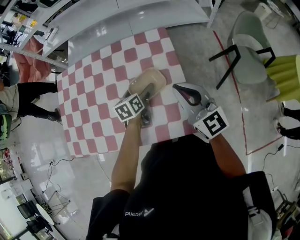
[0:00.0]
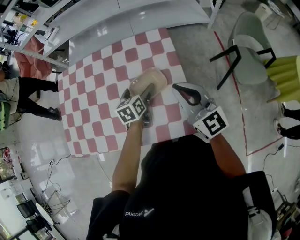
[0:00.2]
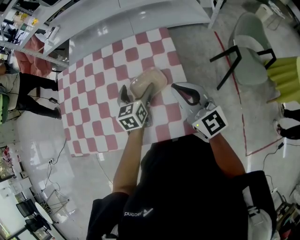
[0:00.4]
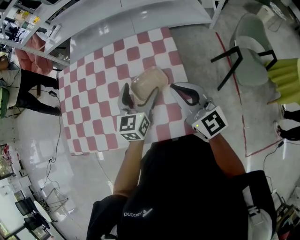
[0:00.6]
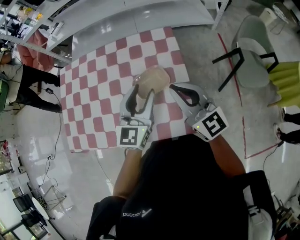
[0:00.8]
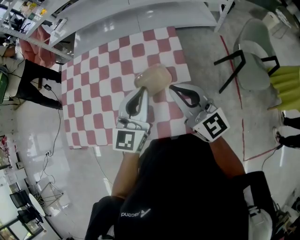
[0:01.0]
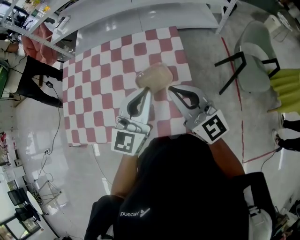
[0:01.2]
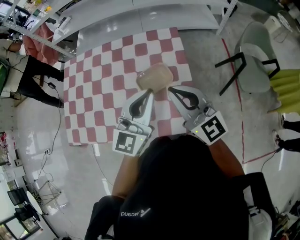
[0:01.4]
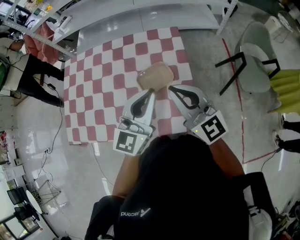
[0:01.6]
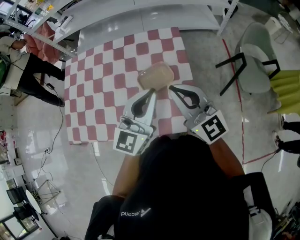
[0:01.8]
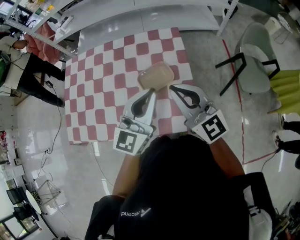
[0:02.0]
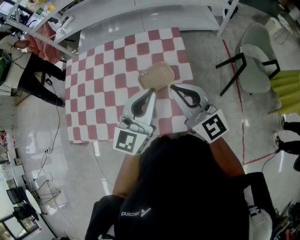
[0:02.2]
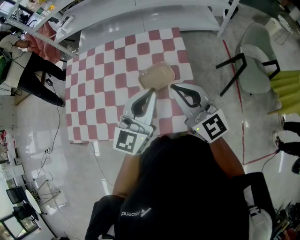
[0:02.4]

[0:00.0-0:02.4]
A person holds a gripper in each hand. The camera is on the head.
0:00.0 to 0:01.2: The left gripper moves upward and backward, some 25 cm, angles its fingers upward, by approximately 40 degrees, and closes its fingers. The right gripper changes place by about 5 cm.
0:01.2 to 0:02.4: There are only small adjustments of the grippers.

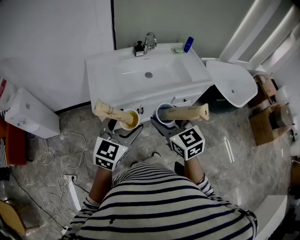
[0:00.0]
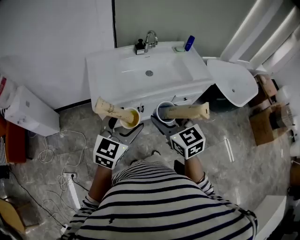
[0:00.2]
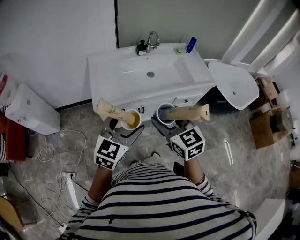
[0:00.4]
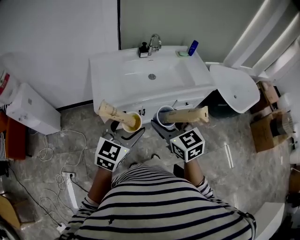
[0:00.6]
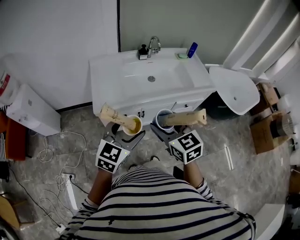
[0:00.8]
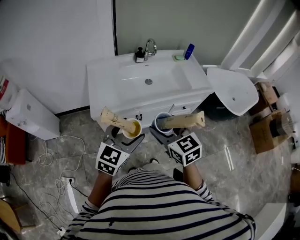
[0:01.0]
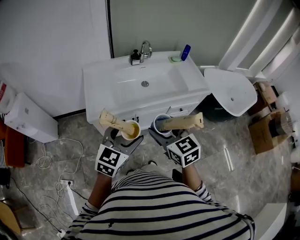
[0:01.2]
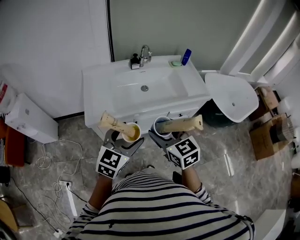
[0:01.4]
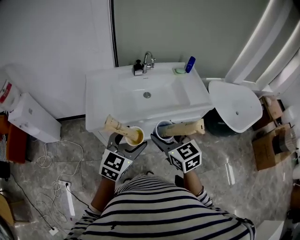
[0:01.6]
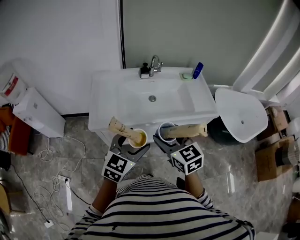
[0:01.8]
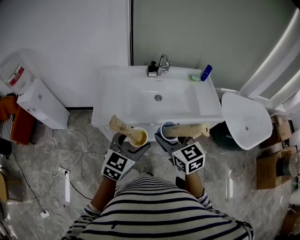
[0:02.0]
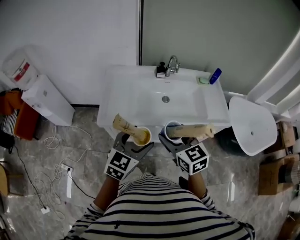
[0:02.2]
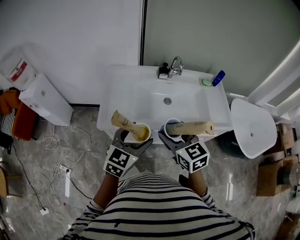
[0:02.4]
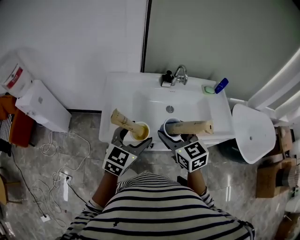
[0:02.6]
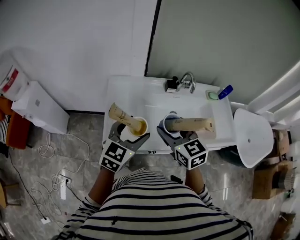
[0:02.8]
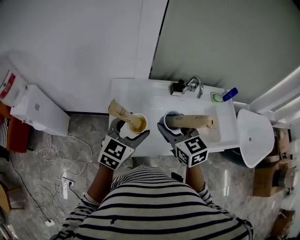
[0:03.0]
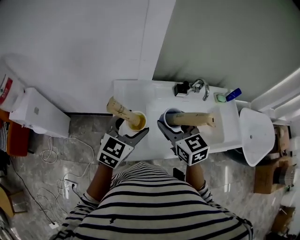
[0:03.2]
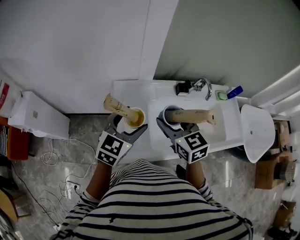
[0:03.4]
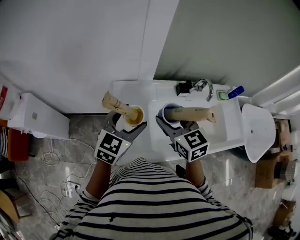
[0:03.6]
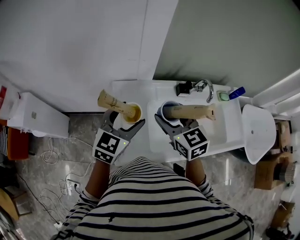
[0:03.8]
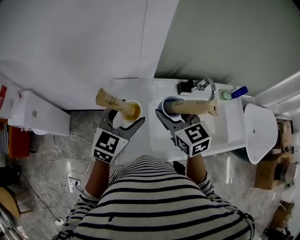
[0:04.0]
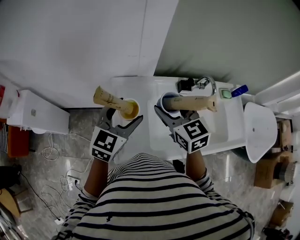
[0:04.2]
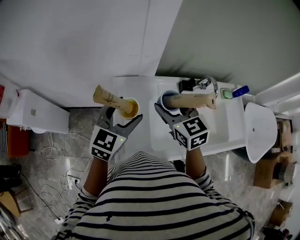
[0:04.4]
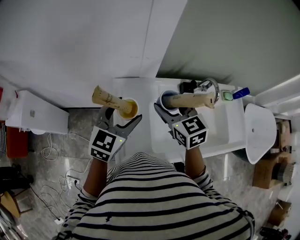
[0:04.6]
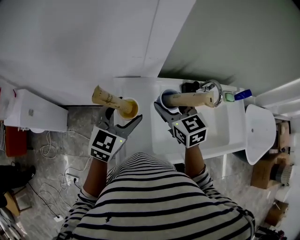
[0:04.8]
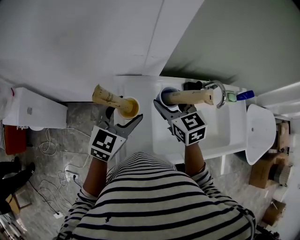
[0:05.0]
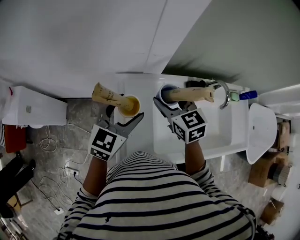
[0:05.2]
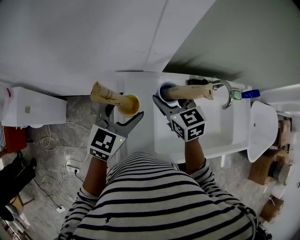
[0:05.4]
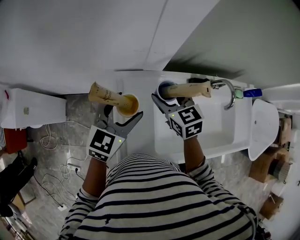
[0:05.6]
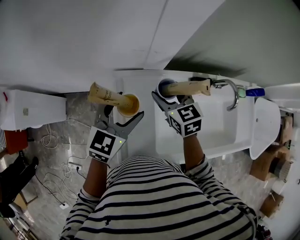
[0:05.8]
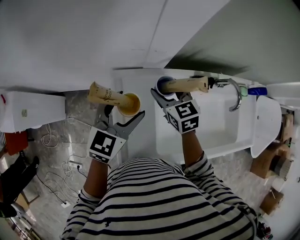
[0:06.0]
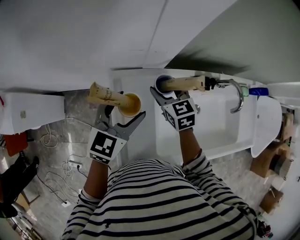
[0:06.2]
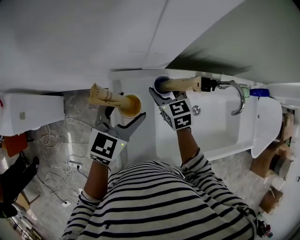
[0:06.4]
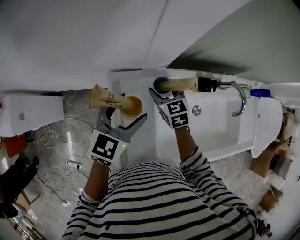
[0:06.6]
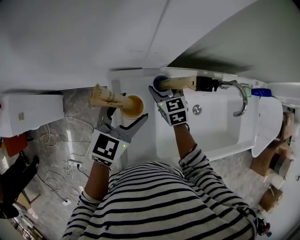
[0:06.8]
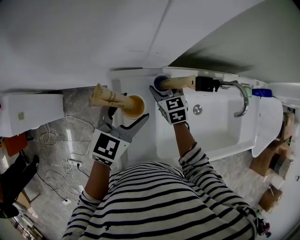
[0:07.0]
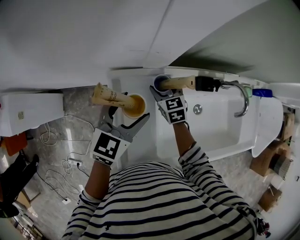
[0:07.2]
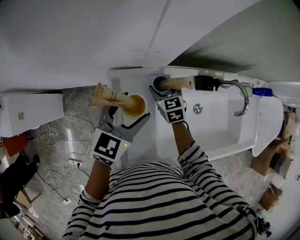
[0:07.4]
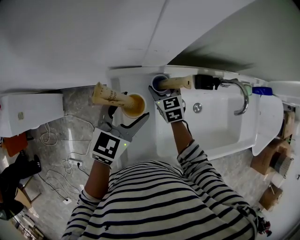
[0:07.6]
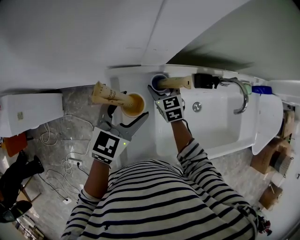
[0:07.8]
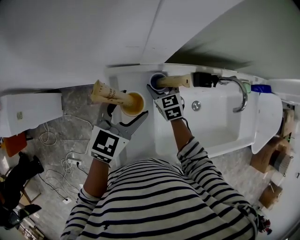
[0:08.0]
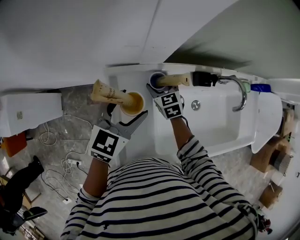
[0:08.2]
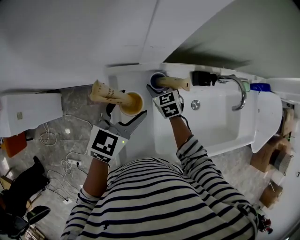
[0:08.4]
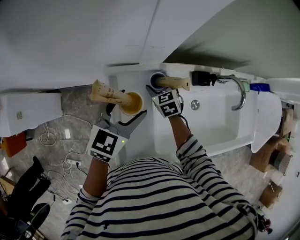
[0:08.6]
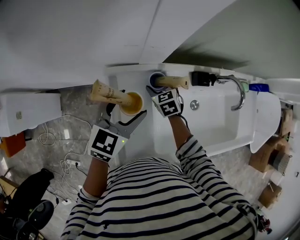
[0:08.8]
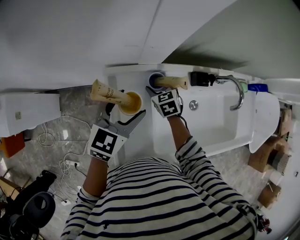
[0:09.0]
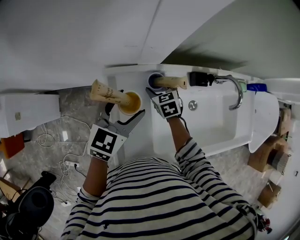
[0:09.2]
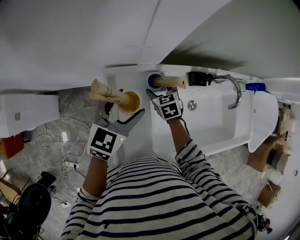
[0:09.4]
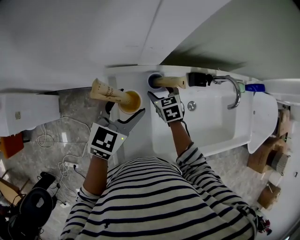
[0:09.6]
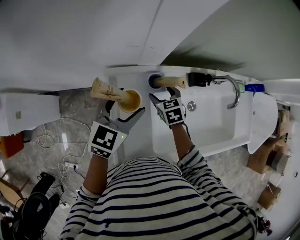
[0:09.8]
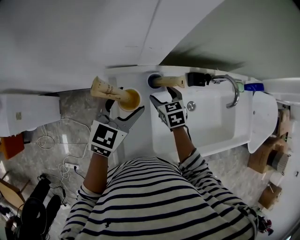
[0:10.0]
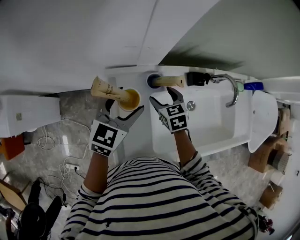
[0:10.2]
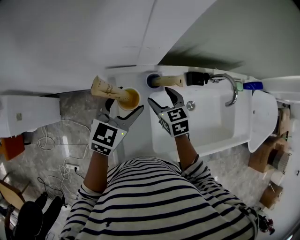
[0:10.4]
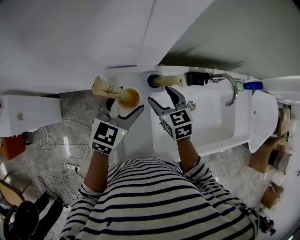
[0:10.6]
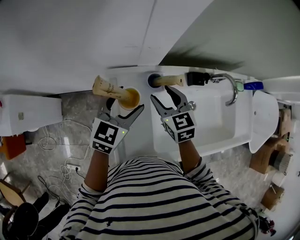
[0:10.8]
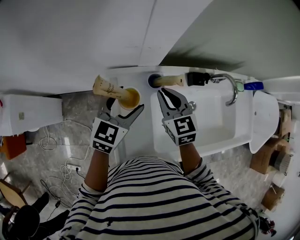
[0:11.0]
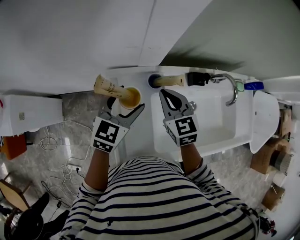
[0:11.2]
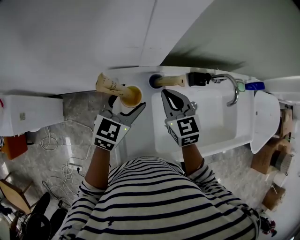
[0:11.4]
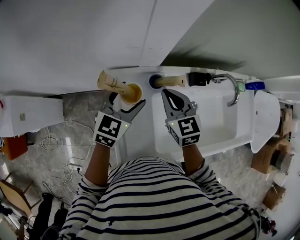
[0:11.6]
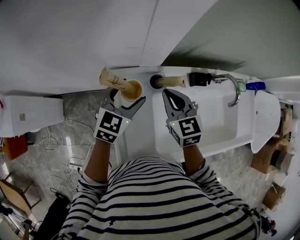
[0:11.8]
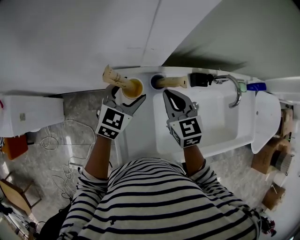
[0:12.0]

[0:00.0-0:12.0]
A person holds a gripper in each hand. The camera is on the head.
0:00.0 to 0:01.6: Both grippers travel together to the right and forward, about 10 cm.
0:01.6 to 0:03.0: The two grippers go some 35 cm forward and to the left.
0:03.0 to 0:04.4: Both grippers travel together forward and to the left, approximately 15 cm.
0:04.4 to 0:06.0: The left gripper travels forward and downward by roughly 15 cm, while the right gripper travels downward and forward by approximately 20 cm.
0:06.0 to 0:07.6: The right gripper travels downward by approximately 15 cm.
0:07.6 to 0:09.0: The grippers move only a little.
0:09.0 to 0:10.4: The right gripper goes approximately 10 cm upward and backward.
0:10.4 to 0:12.0: The right gripper is displaced upward by approximately 10 cm, and closes its fingers.

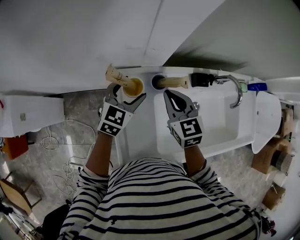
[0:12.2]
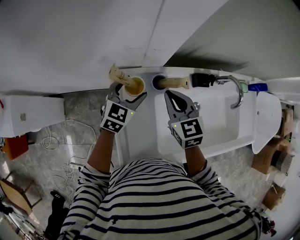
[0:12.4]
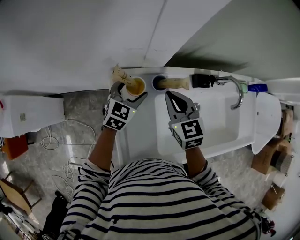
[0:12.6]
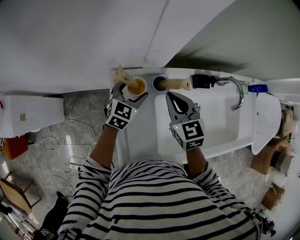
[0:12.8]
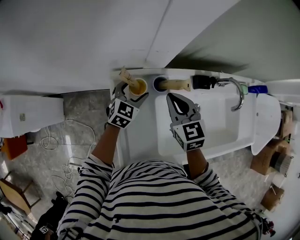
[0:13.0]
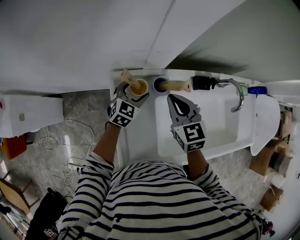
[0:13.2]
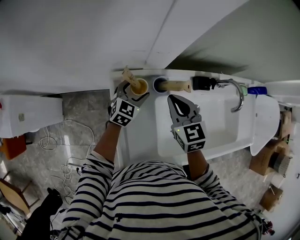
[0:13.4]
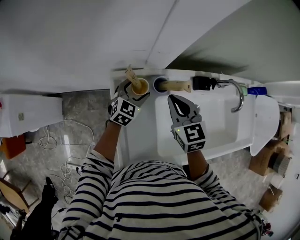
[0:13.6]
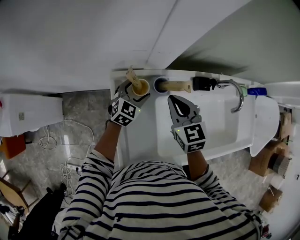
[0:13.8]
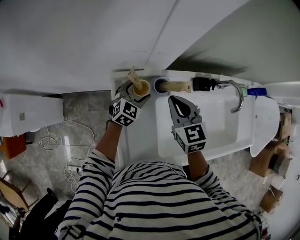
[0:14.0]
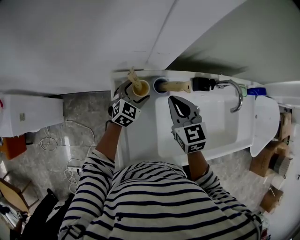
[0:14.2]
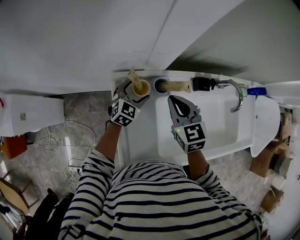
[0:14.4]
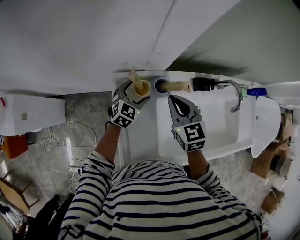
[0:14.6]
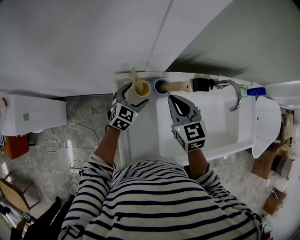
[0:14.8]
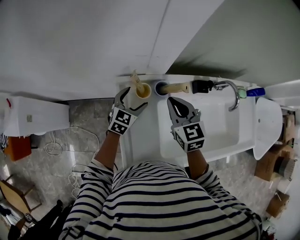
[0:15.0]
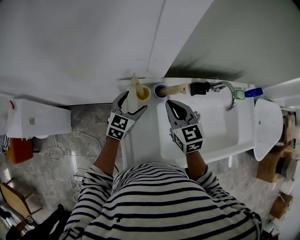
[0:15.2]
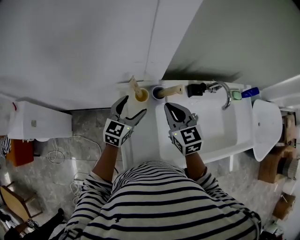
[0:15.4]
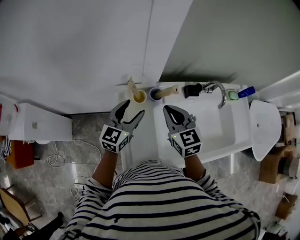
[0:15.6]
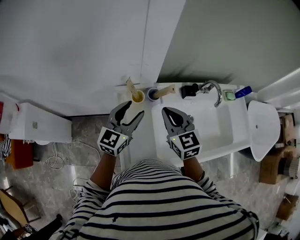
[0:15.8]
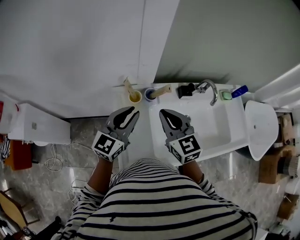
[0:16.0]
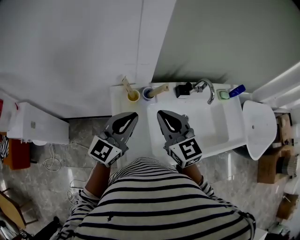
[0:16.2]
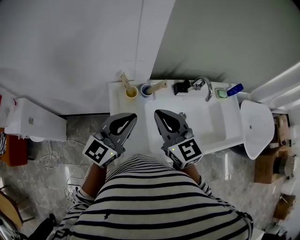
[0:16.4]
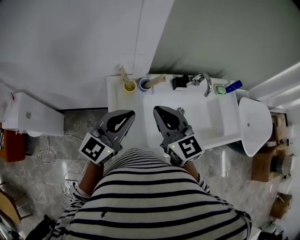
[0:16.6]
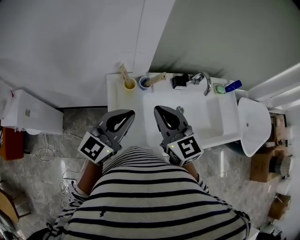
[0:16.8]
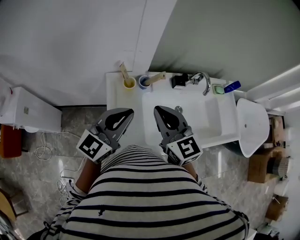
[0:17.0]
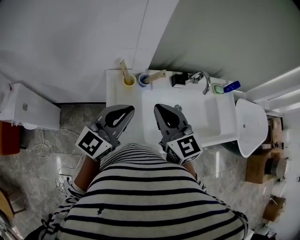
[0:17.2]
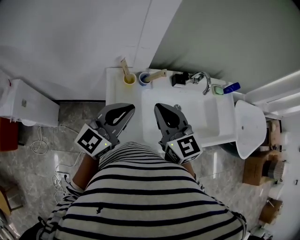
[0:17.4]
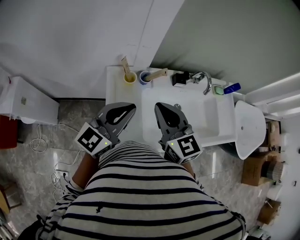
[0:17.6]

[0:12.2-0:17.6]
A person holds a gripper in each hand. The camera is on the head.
0:12.2 to 0:13.6: The left gripper heads downward, covering roughly 10 cm.
0:13.6 to 0:15.0: The left gripper changes place by approximately 5 cm.
0:15.0 to 0:16.2: The left gripper moves upward and backward, about 30 cm, changes its angle by some 30 degrees, and closes. Meanwhile the right gripper goes roughly 15 cm upward and backward.
0:16.2 to 0:17.6: The left gripper heads backward, covering roughly 5 cm.

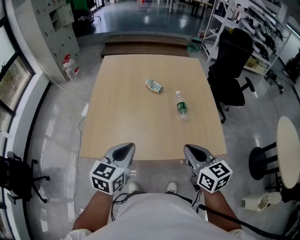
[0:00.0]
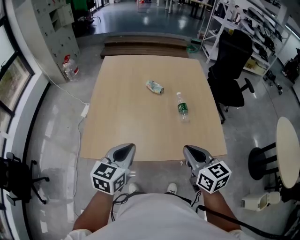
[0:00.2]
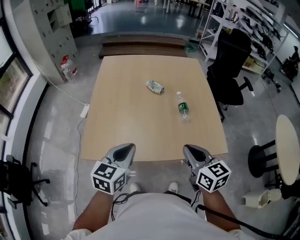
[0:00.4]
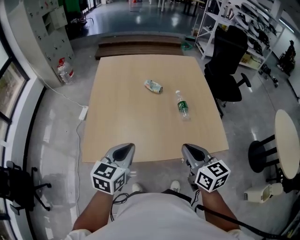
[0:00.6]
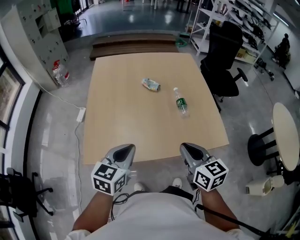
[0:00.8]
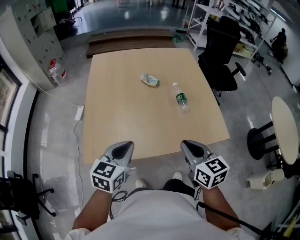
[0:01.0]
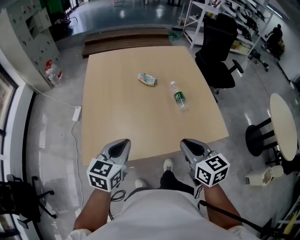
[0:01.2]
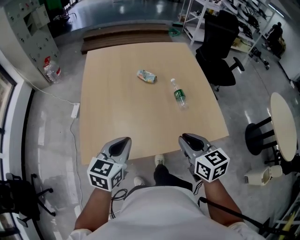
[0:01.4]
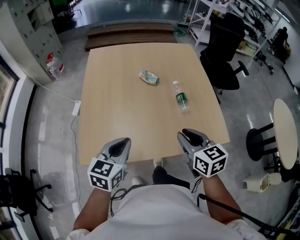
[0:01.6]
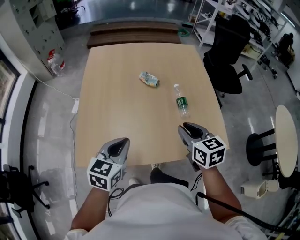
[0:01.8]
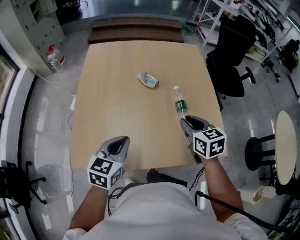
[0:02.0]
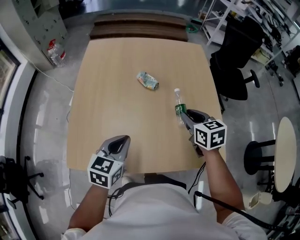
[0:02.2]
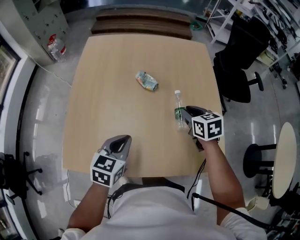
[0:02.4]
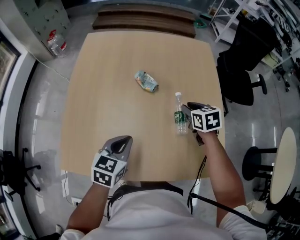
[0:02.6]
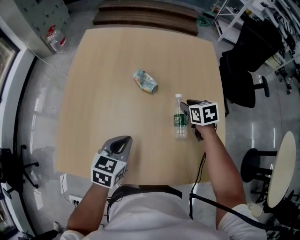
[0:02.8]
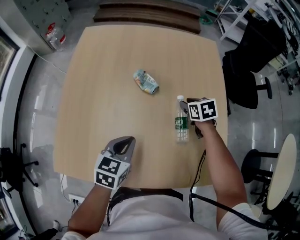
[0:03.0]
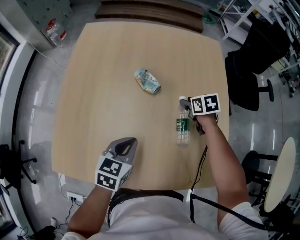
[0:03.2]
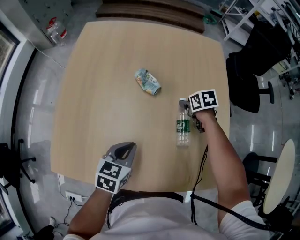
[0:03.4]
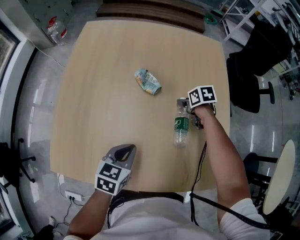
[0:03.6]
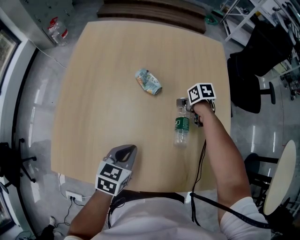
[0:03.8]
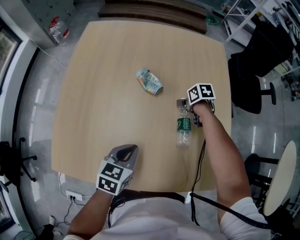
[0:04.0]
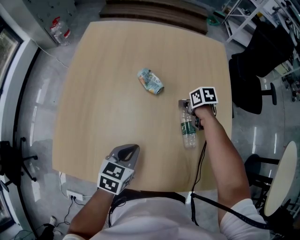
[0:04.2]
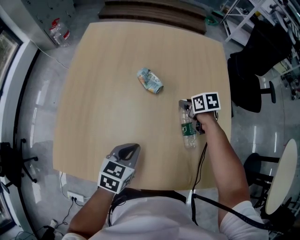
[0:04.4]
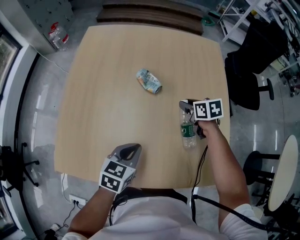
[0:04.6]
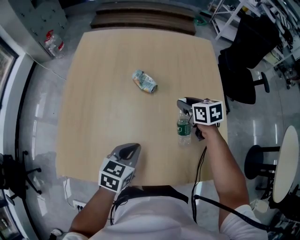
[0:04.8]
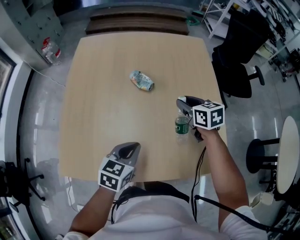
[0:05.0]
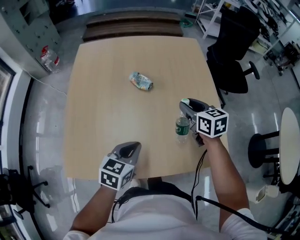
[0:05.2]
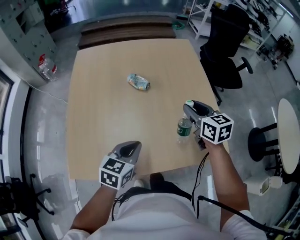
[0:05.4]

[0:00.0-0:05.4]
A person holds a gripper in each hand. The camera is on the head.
0:00.0 to 0:01.4: The left gripper changes place by some 5 cm, while the right gripper moves about 5 cm.
0:01.4 to 0:02.8: The left gripper goes some 20 cm forward, downward and to the right; the right gripper shifts approximately 40 cm forward and downward, and turns by some 30 degrees.
0:02.8 to 0:04.0: The right gripper is displaced downward and forward by roughly 10 cm, and changes its angle by about 30 degrees.
0:04.0 to 0:05.4: The right gripper travels upward by about 25 cm, and points its fingers some 40 degrees further upward; the left gripper shifts some 5 cm upward.
